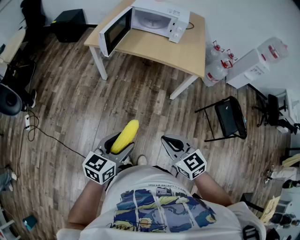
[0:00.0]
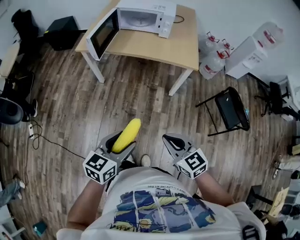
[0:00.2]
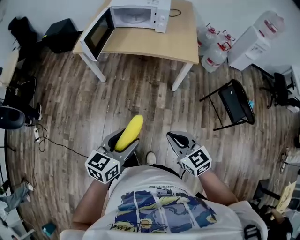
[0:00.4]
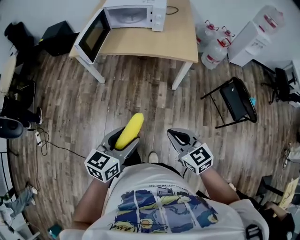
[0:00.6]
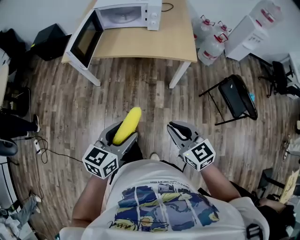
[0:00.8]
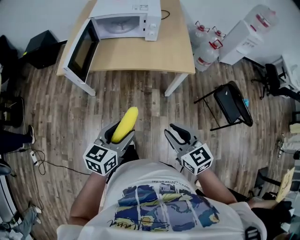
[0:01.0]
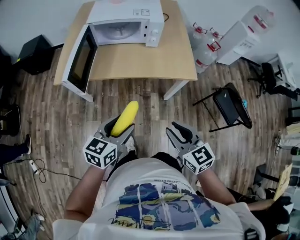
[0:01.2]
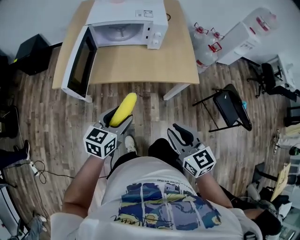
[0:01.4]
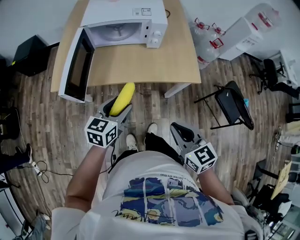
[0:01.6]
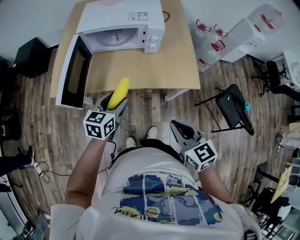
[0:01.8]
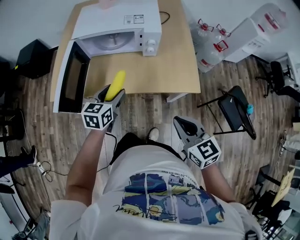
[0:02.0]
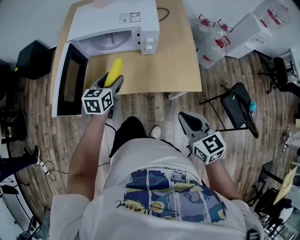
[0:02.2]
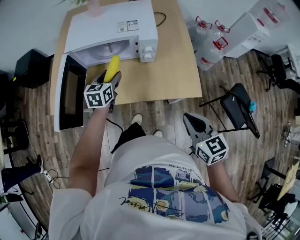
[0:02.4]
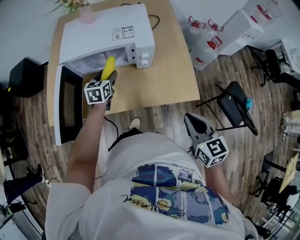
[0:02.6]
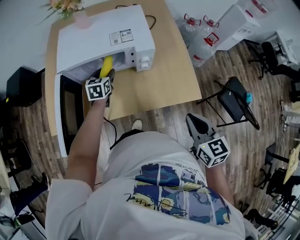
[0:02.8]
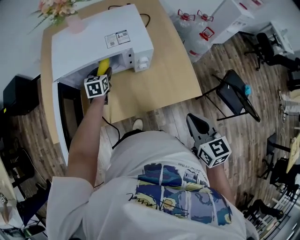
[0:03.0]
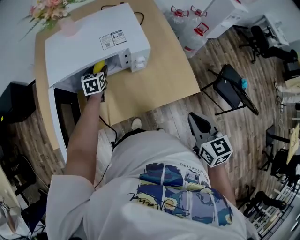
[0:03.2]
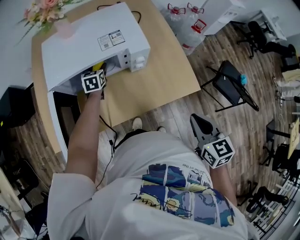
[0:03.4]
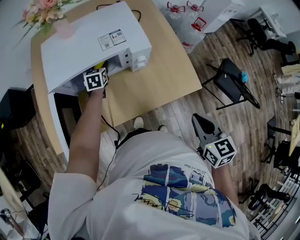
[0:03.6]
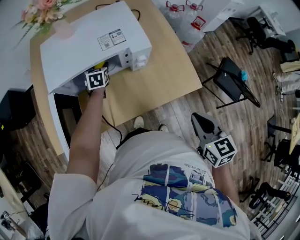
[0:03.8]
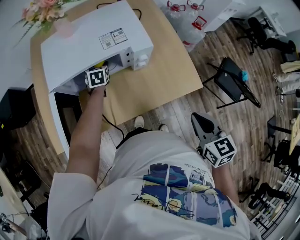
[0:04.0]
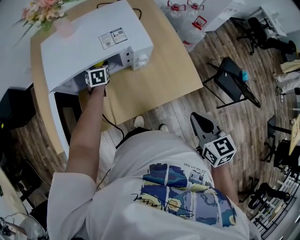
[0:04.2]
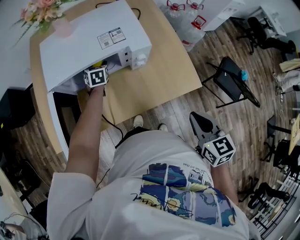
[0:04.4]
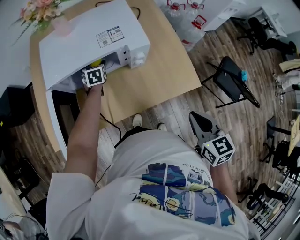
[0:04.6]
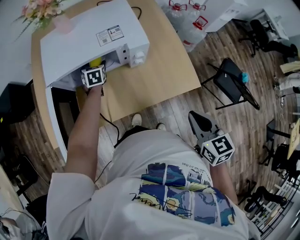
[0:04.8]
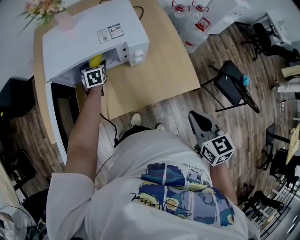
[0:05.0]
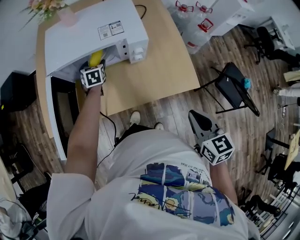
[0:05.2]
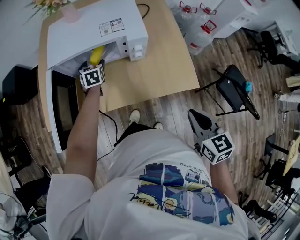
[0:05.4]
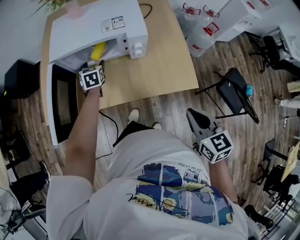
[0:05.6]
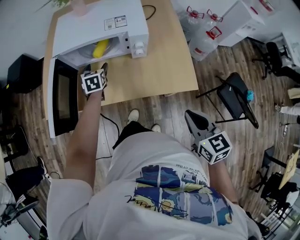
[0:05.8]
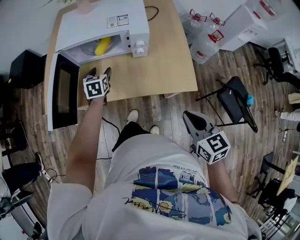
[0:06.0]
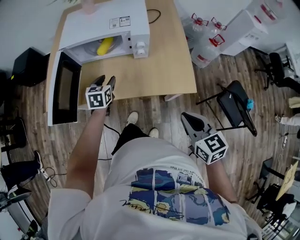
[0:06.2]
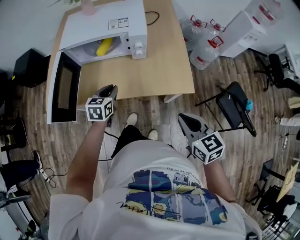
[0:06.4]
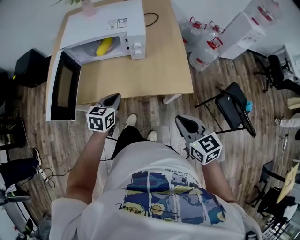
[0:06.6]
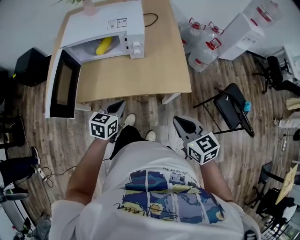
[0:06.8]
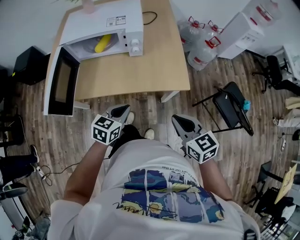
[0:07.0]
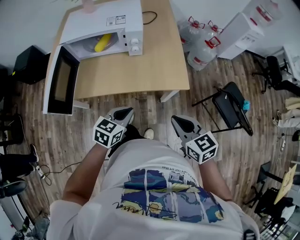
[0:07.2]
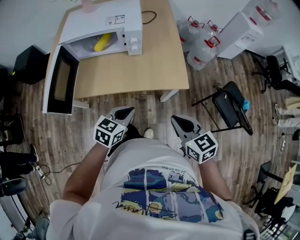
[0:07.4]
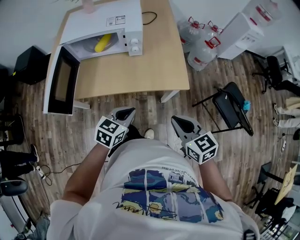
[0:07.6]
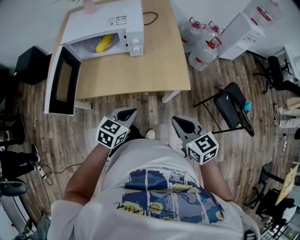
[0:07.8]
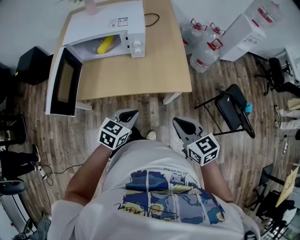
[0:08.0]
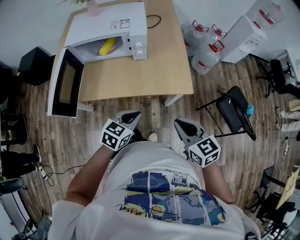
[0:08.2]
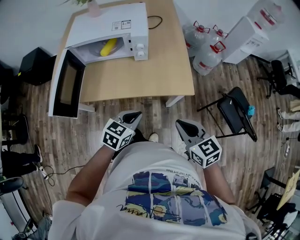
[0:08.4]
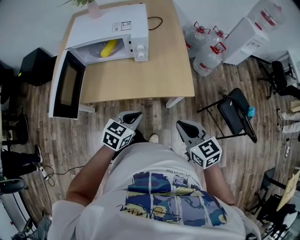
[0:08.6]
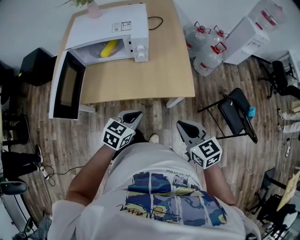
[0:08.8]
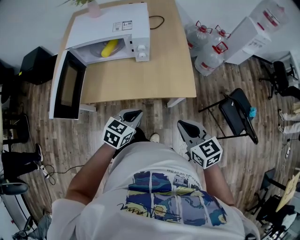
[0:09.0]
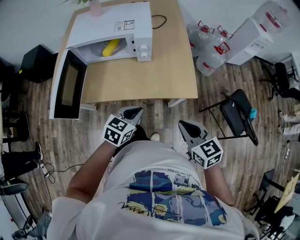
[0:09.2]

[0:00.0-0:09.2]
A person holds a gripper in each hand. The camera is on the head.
0:00.0 to 0:01.6: The grippers both shift forward by roughly 40 cm. The right gripper changes its angle by roughly 20 degrees.
0:01.6 to 0:03.0: The right gripper moves forward, some 20 cm, and swivels approximately 20 degrees. Meanwhile the left gripper goes approximately 40 cm forward.
0:03.0 to 0:04.6: The left gripper is displaced forward by approximately 5 cm.
0:04.6 to 0:06.2: The left gripper goes about 25 cm backward, and closes up; the right gripper travels backward by approximately 5 cm, and rotates approximately 20 degrees.
0:06.2 to 0:07.6: The left gripper heads backward and to the right, covering approximately 25 cm, rotates some 30 degrees, and closes up. Meanwhile the right gripper heads backward, covering approximately 5 cm.
0:07.6 to 0:09.2: The grippers make only small movements.

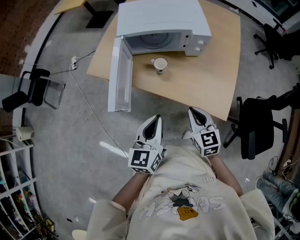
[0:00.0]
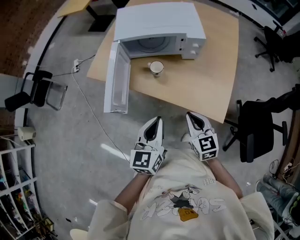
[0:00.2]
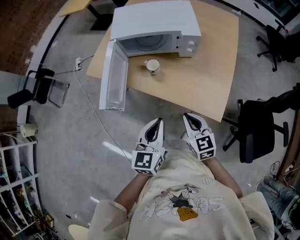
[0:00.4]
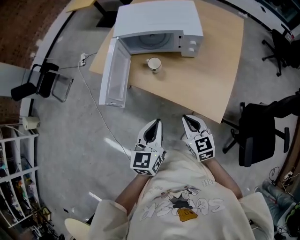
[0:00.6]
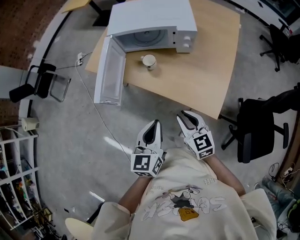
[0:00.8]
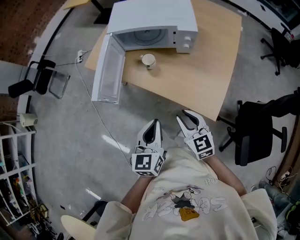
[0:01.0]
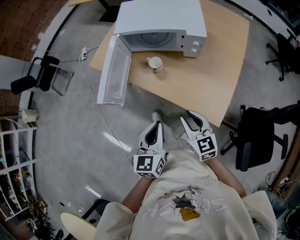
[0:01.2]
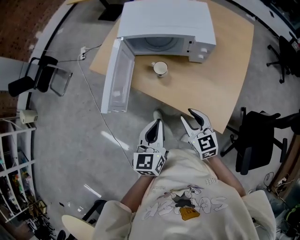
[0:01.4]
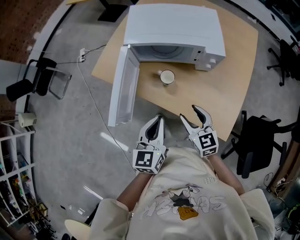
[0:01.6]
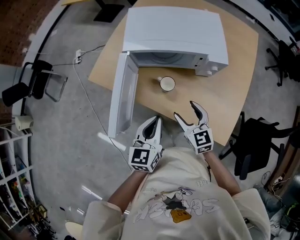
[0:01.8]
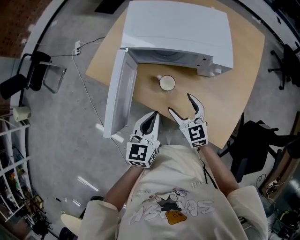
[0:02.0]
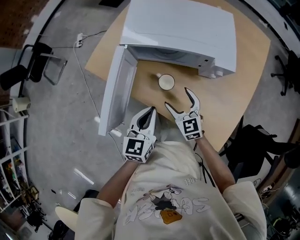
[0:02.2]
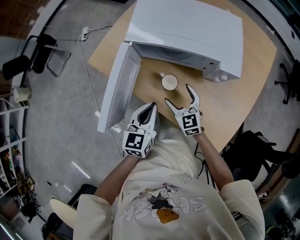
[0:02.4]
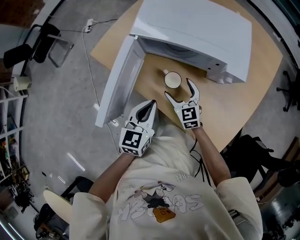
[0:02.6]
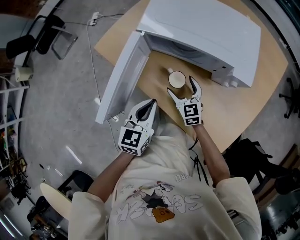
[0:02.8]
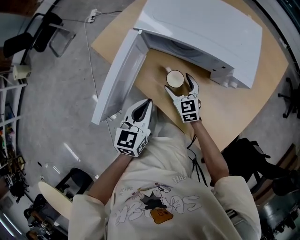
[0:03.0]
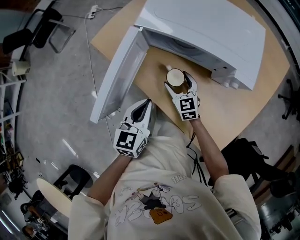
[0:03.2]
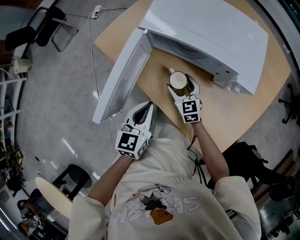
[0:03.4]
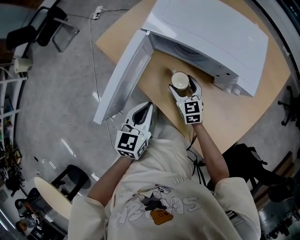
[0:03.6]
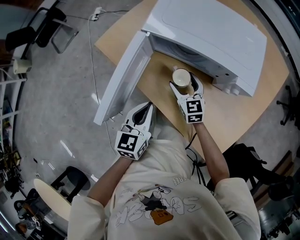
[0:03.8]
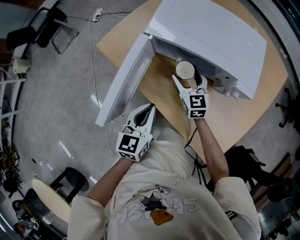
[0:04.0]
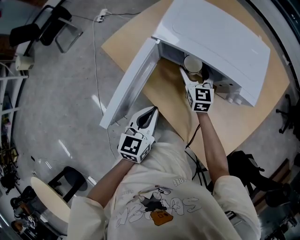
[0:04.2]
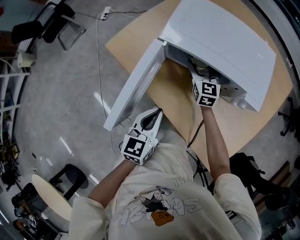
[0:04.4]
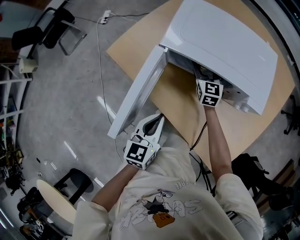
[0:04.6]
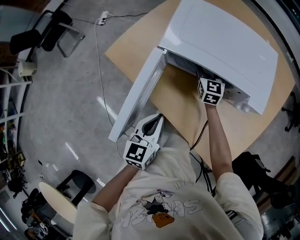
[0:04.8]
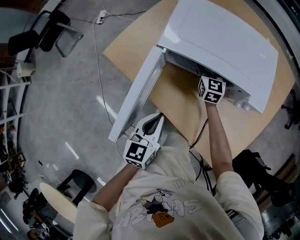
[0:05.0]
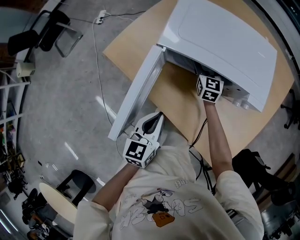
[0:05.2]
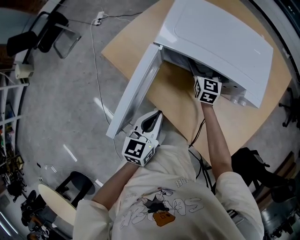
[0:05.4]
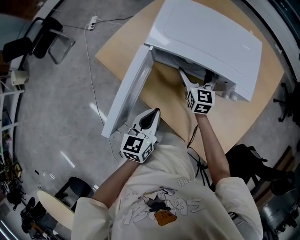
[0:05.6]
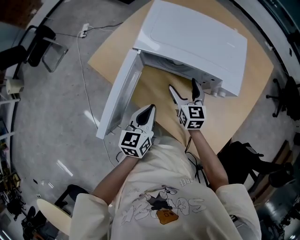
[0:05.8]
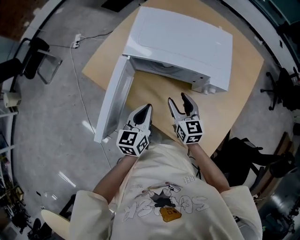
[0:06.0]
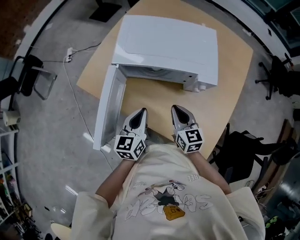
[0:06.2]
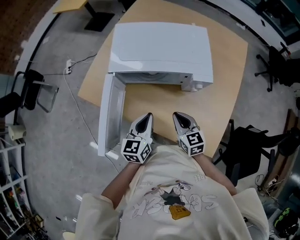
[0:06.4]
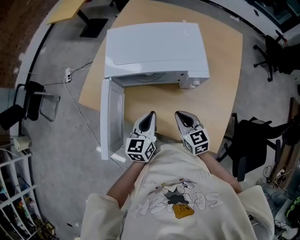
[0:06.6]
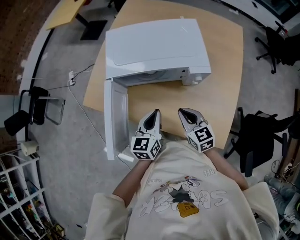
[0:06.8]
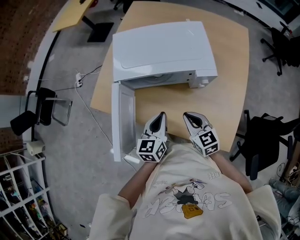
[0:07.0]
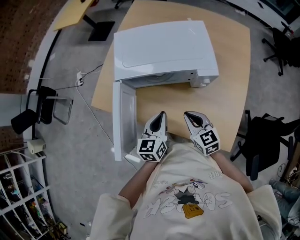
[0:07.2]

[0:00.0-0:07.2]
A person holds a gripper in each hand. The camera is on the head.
0:00.0 to 0:01.4: The right gripper reaches roughly 5 cm backward, then returns.
0:01.4 to 0:02.8: The right gripper goes approximately 30 cm forward and downward, and opens. Meanwhile the left gripper is displaced forward and downward by about 20 cm.
0:02.8 to 0:04.4: The right gripper moves forward, approximately 15 cm.
0:04.4 to 0:05.8: The right gripper travels backward by about 10 cm.
0:05.8 to 0:07.2: The right gripper moves backward and to the right, some 15 cm, and closes its fingers; the left gripper is displaced to the right by roughly 5 cm.

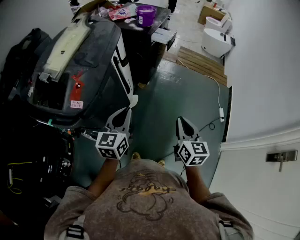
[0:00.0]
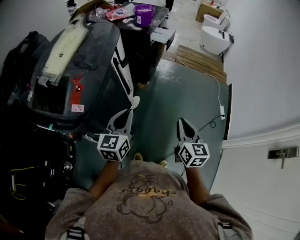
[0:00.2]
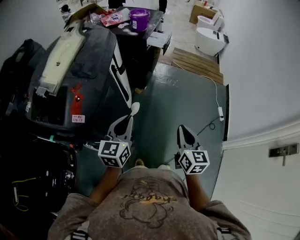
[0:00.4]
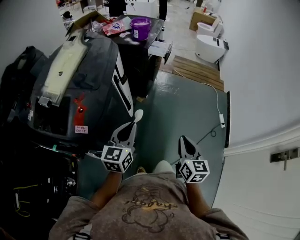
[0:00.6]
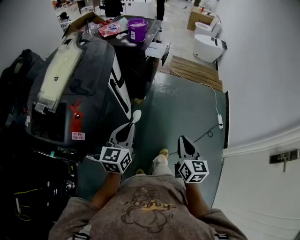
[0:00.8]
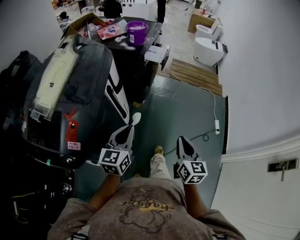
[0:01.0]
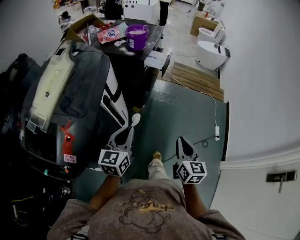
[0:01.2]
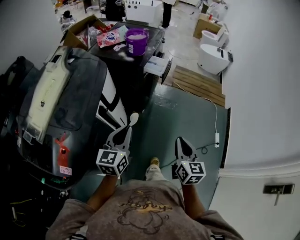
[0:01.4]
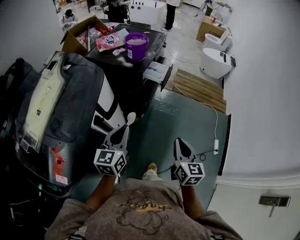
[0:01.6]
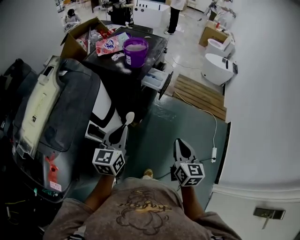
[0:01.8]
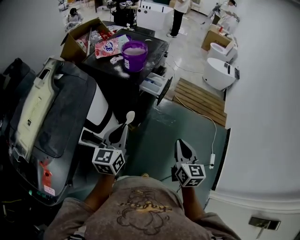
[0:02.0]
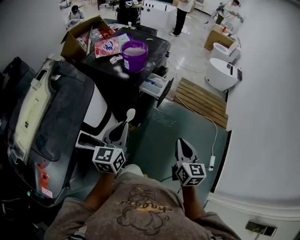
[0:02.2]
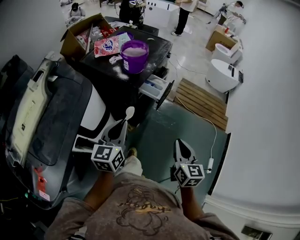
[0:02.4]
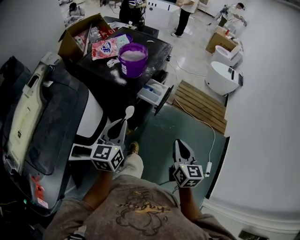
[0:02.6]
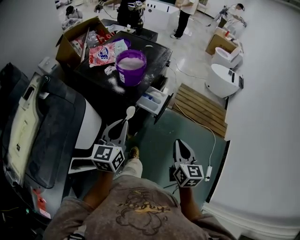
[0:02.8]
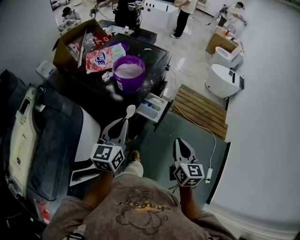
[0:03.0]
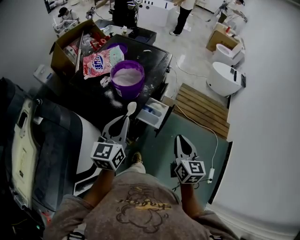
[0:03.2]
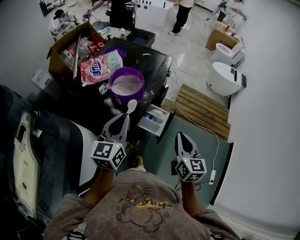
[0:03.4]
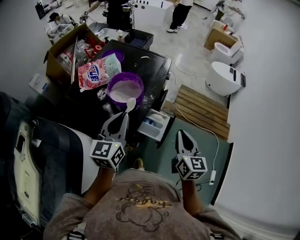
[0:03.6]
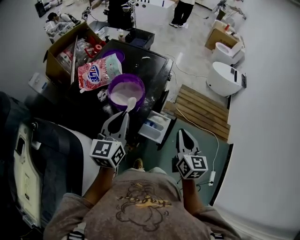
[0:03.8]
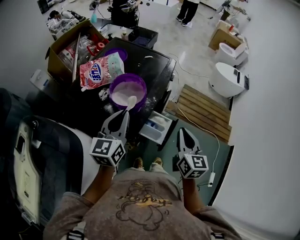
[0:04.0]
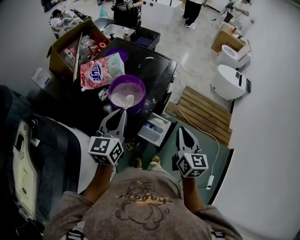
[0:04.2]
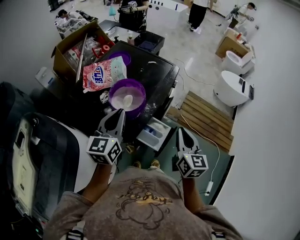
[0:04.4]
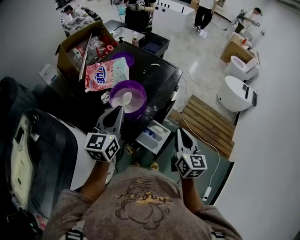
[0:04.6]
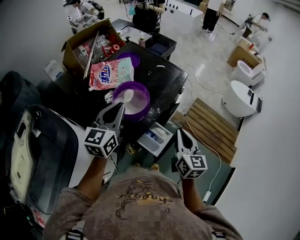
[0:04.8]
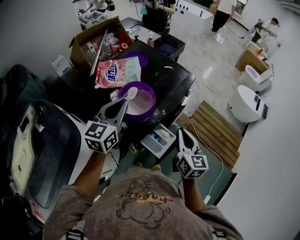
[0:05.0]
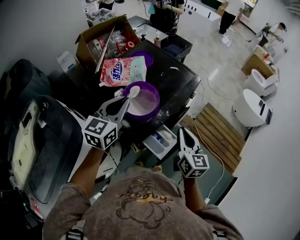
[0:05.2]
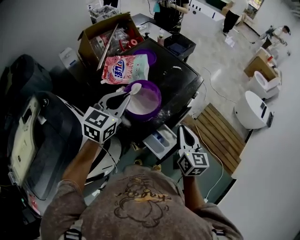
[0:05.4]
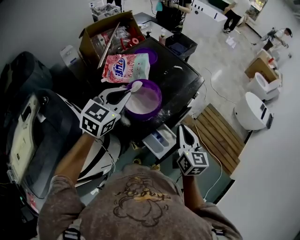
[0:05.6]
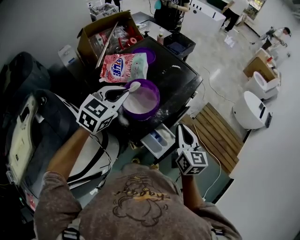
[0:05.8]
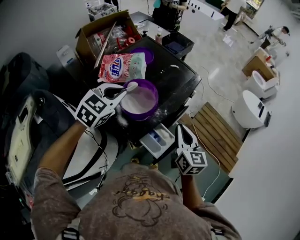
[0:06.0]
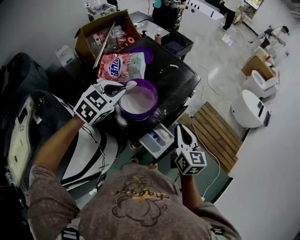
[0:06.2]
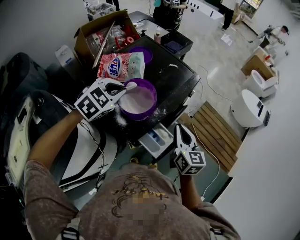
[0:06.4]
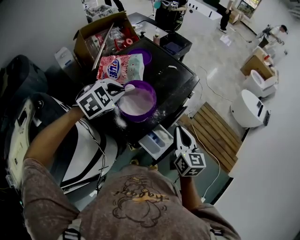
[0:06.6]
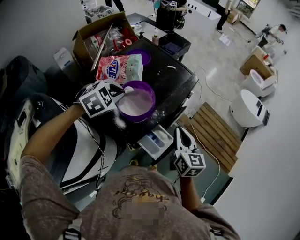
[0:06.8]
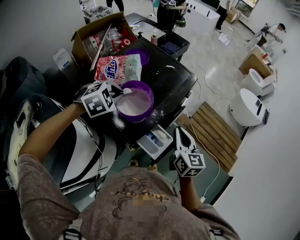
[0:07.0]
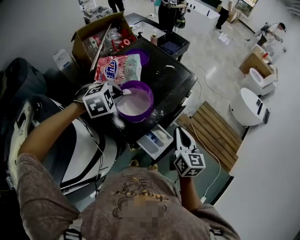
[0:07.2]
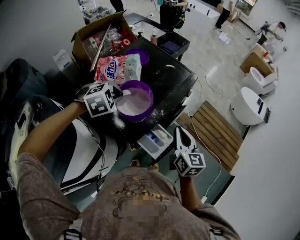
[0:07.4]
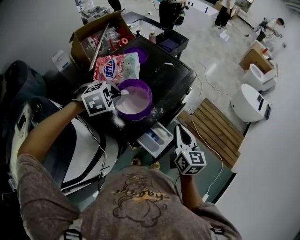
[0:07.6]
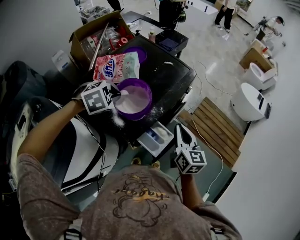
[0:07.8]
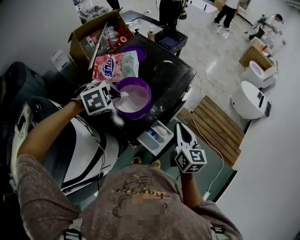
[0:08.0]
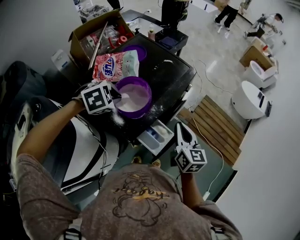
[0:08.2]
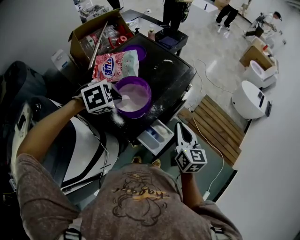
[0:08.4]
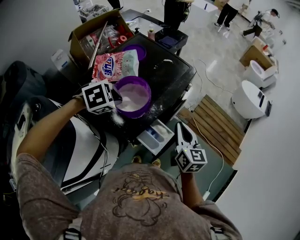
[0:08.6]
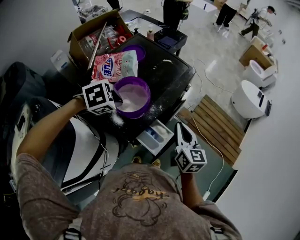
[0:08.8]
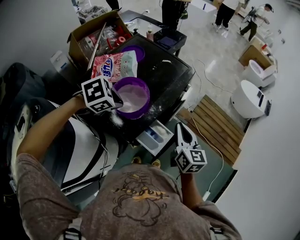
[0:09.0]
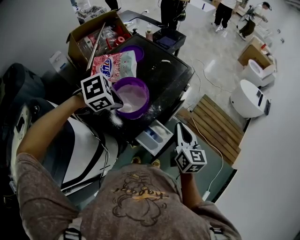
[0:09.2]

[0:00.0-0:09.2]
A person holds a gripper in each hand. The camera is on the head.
0:00.0 to 0:01.6: Both grippers move forward, some 25 cm.
0:01.6 to 0:03.0: Both grippers move forward, roughly 30 cm.
0:03.0 to 0:04.6: The grippers both shift forward by about 20 cm.
0:04.6 to 0:06.2: Both grippers travel together forward, some 5 cm. The left gripper tilts its fingers about 30 degrees downward.
0:06.2 to 0:07.6: The left gripper moves downward, about 5 cm, and swivels some 30 degrees.
0:07.6 to 0:09.2: The left gripper ends up approximately 5 cm from where it was, and rotates about 30 degrees.
